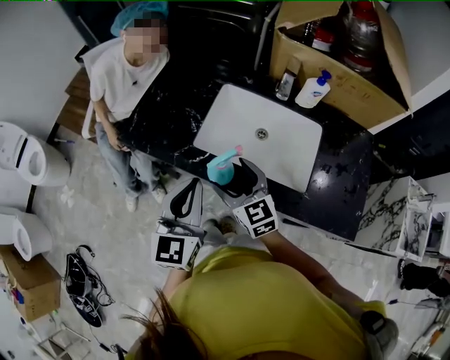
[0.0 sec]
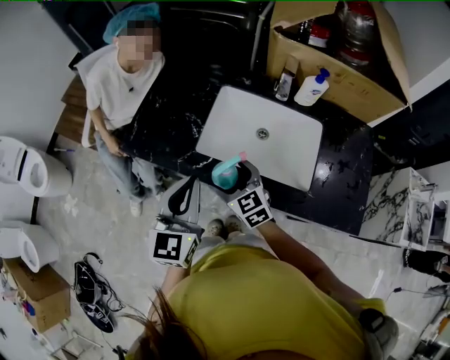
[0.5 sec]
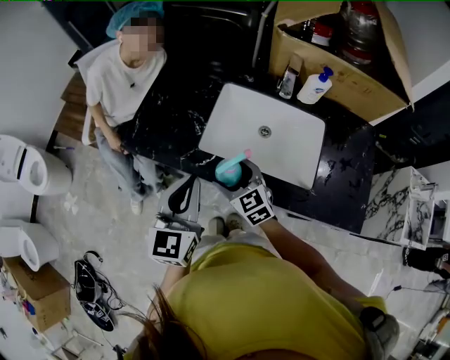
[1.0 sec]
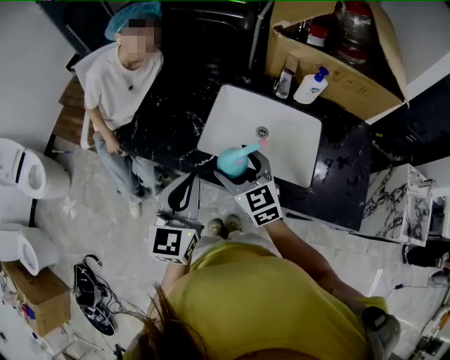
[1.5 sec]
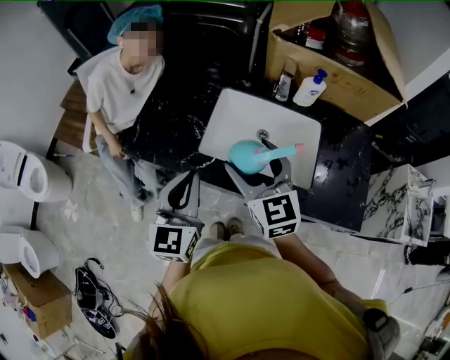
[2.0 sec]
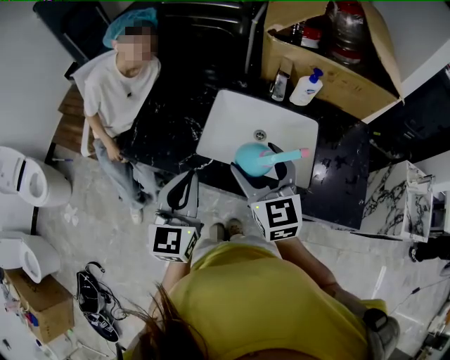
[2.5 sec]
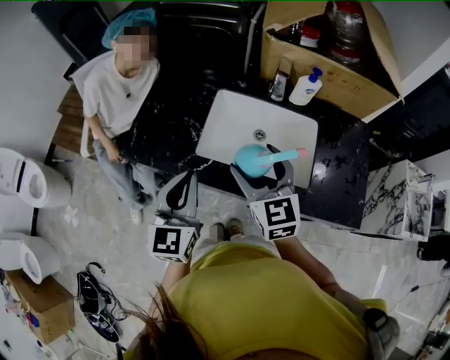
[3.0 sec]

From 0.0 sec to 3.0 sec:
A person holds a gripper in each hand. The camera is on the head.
From 0.0 sec to 1.5 sec: The right gripper goes downward and returns, approximately 5 cm each way.
From 1.5 sec to 3.0 sec: The right gripper shifts approximately 10 cm upward and to the right.

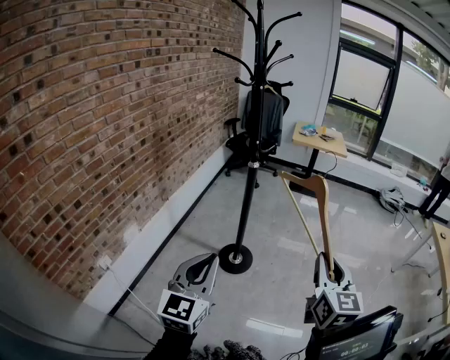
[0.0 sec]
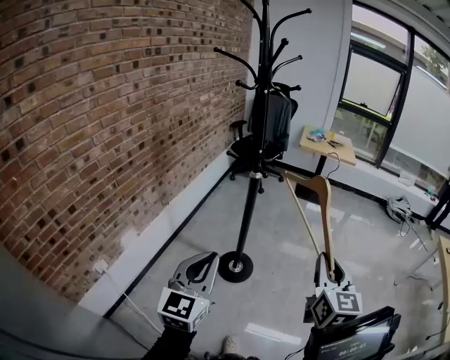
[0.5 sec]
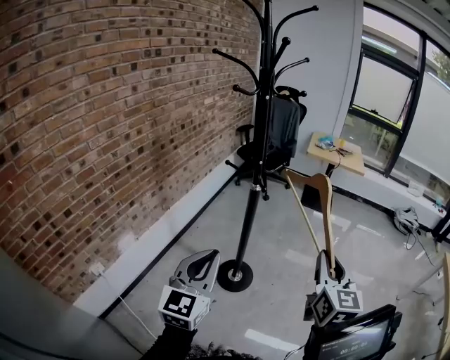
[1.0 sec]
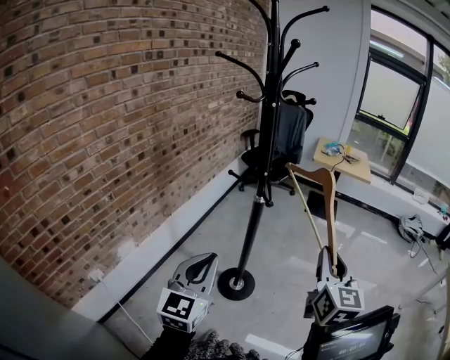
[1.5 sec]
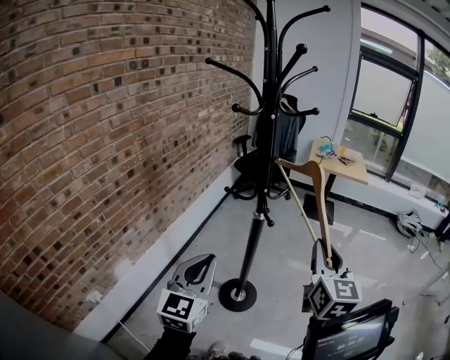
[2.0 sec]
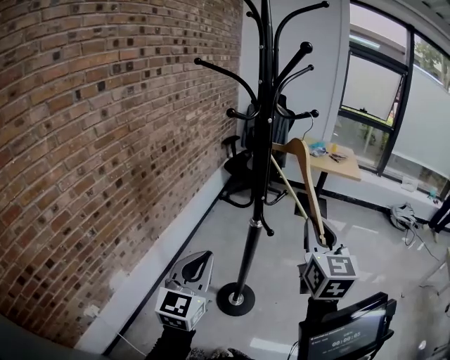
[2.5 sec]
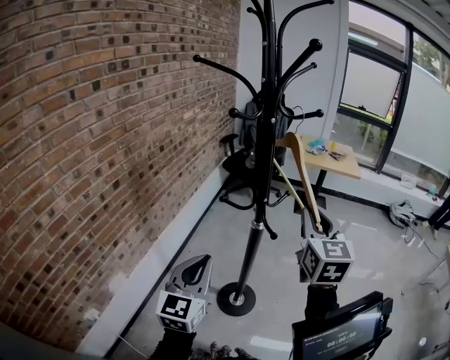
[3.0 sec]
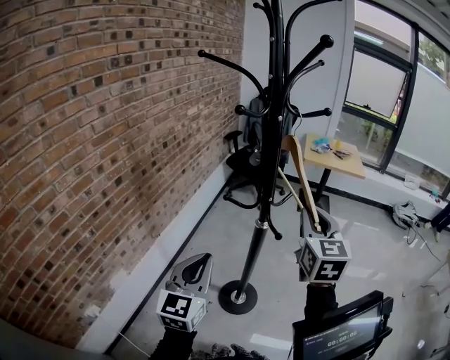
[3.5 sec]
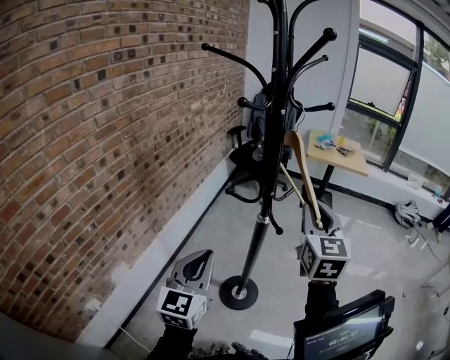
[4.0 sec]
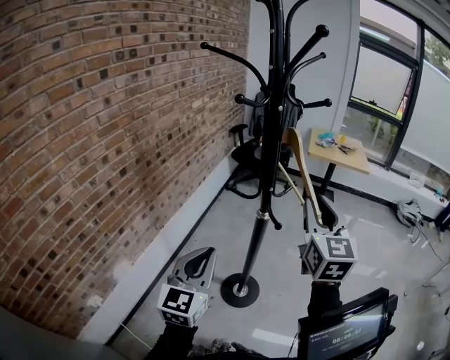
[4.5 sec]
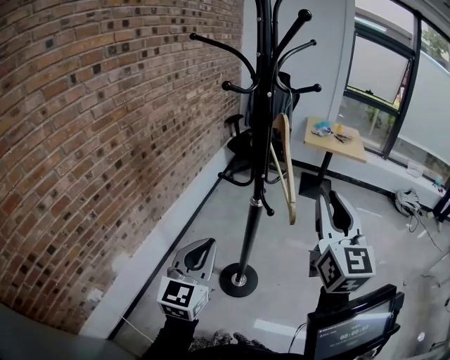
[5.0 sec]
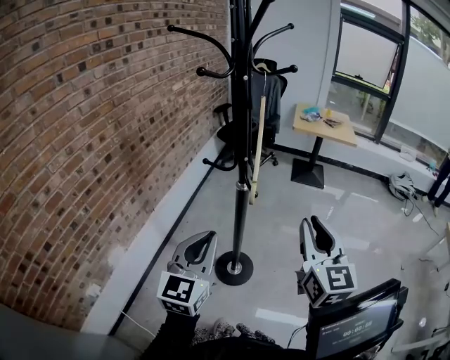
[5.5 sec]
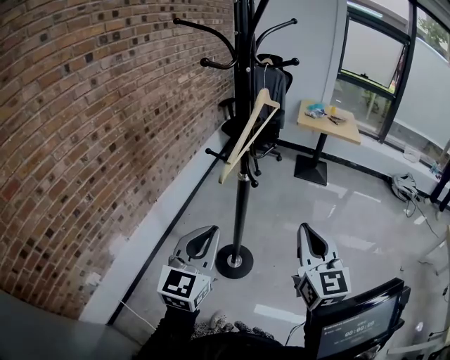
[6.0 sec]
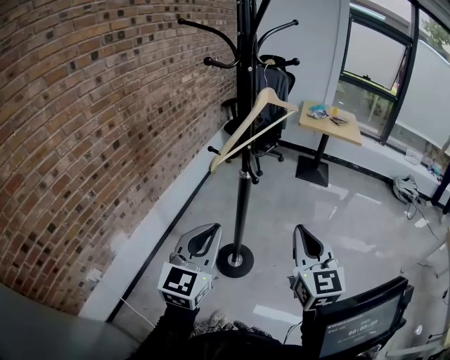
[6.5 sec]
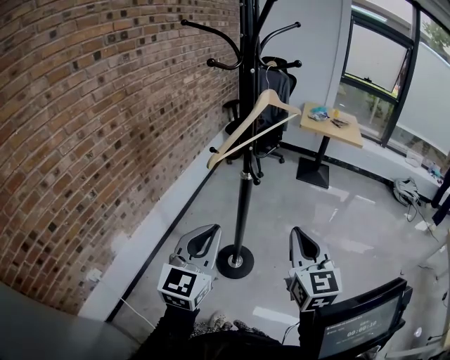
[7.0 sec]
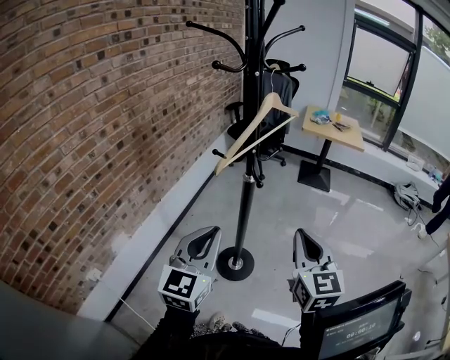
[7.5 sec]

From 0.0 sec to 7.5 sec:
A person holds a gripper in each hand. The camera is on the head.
From 0.0 sec to 2.0 sec: The two grippers go approximately 30 cm forward.
From 2.0 sec to 4.0 sec: The right gripper travels forward and to the left by some 15 cm. Meanwhile the left gripper moves forward, approximately 5 cm.
From 4.0 sec to 5.5 sec: The right gripper goes some 15 cm backward and to the right. The left gripper shifts some 10 cm to the right.
From 5.5 sec to 7.5 sec: The right gripper changes place by about 5 cm.

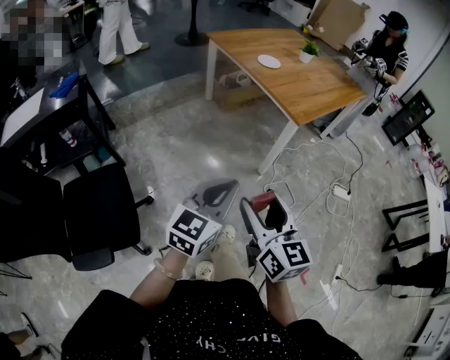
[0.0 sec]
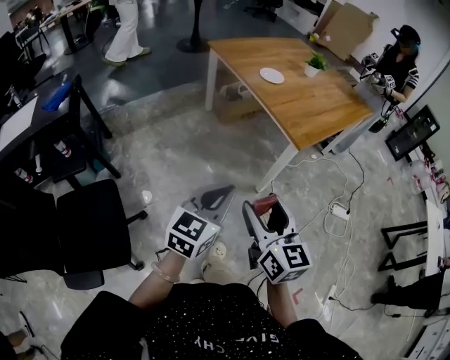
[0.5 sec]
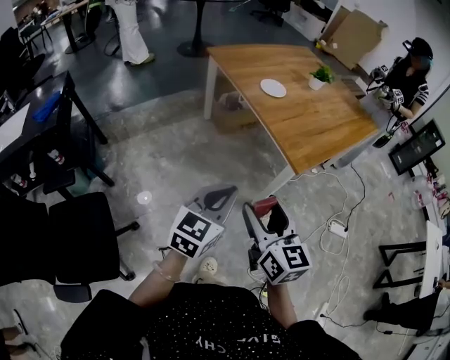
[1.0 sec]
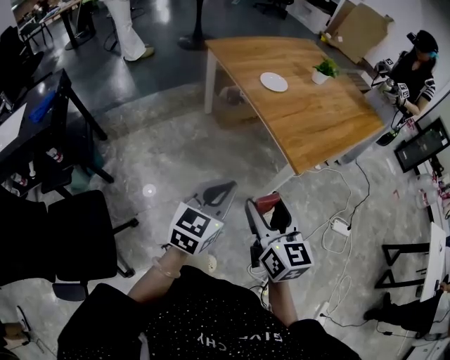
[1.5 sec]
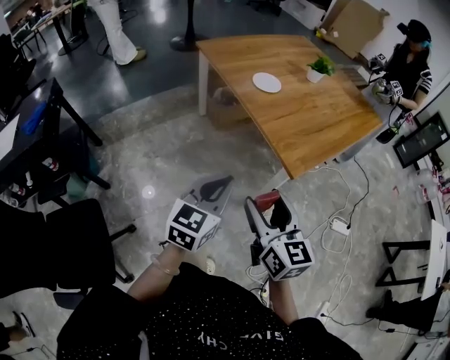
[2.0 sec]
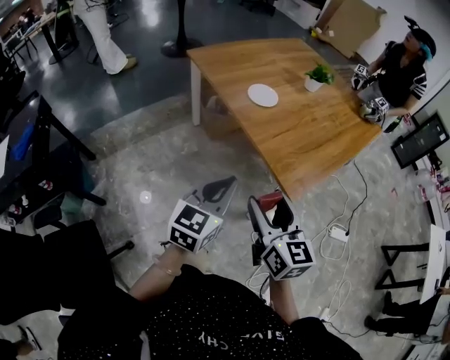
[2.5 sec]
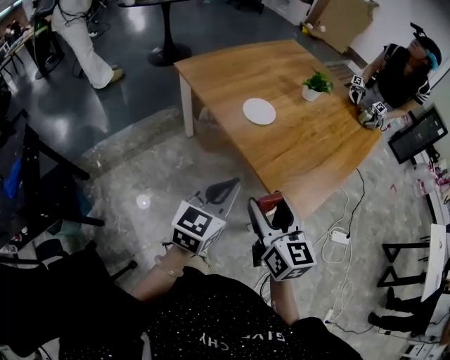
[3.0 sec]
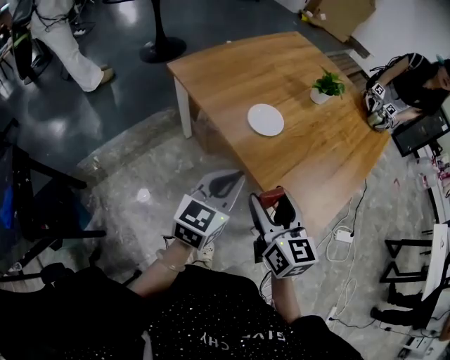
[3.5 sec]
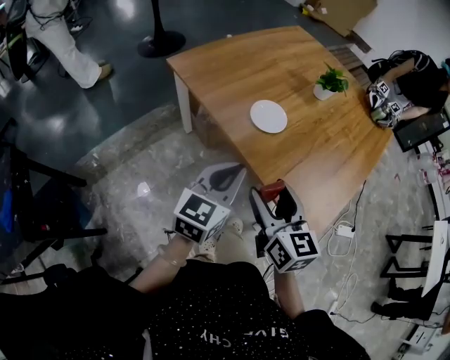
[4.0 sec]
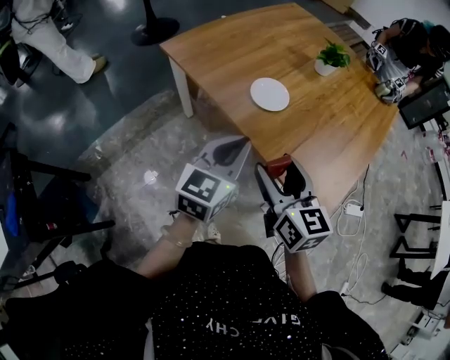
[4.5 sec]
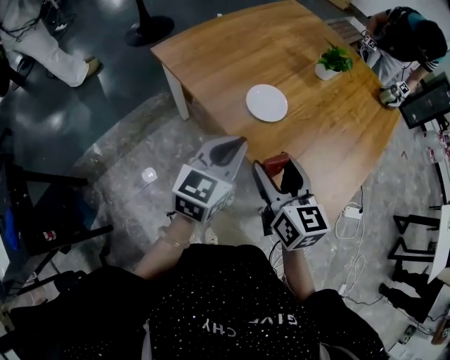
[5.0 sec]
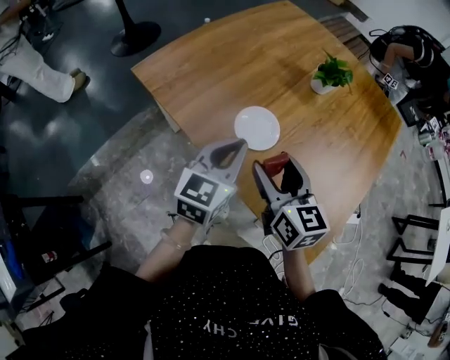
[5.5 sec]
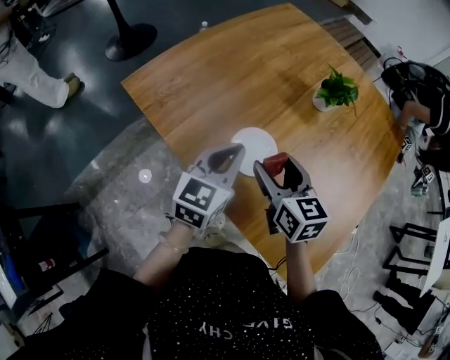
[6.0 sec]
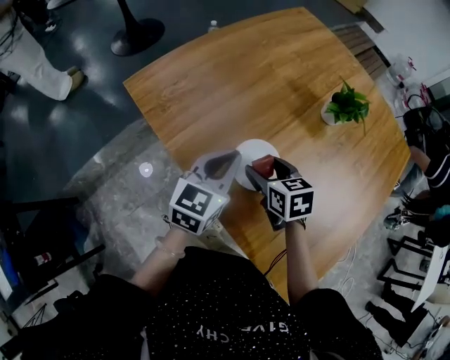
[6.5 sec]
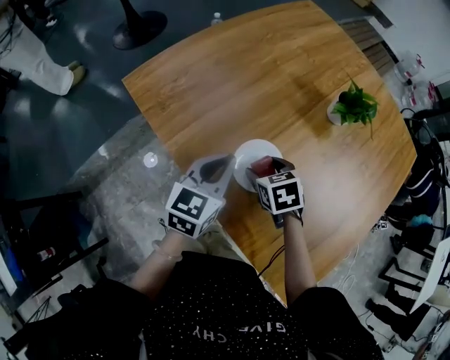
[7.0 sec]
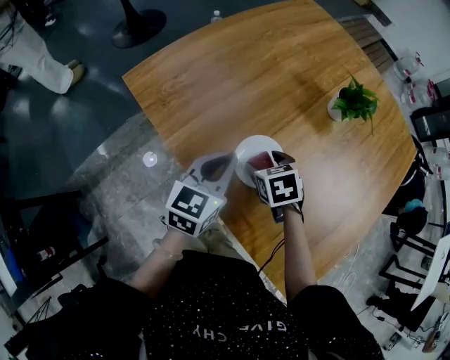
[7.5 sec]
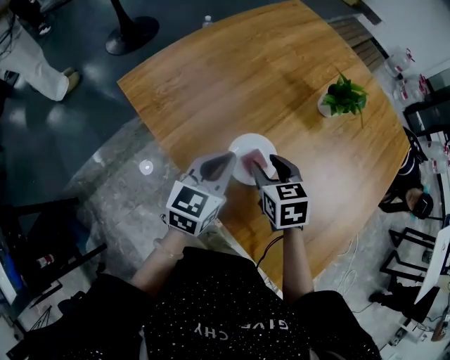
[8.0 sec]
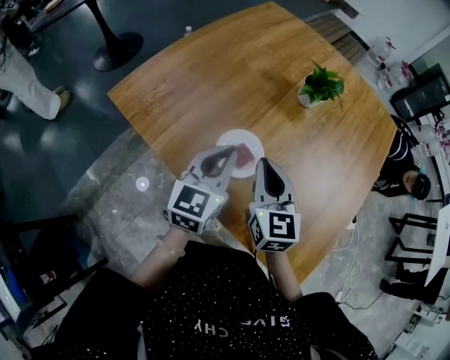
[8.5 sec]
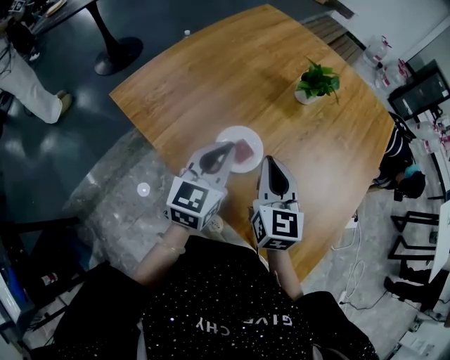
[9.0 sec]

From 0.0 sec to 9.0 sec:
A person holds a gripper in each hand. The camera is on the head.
From 0.0 sec to 2.0 sec: The two grippers go some 35 cm forward.
From 2.0 sec to 4.5 sec: Both grippers move forward, about 35 cm.
From 4.5 sec to 7.0 sec: The right gripper travels forward and downward by about 40 cm, and tilts its fingers approximately 50 degrees downward, while the left gripper travels forward by about 30 cm.
From 7.0 sec to 9.0 sec: The left gripper travels upward by some 5 cm. The right gripper is displaced upward and backward by some 20 cm, points its fingers about 50 degrees further upward, and closes up.

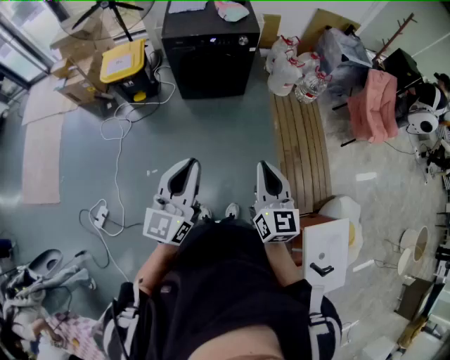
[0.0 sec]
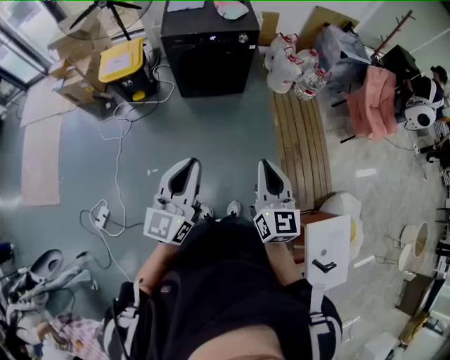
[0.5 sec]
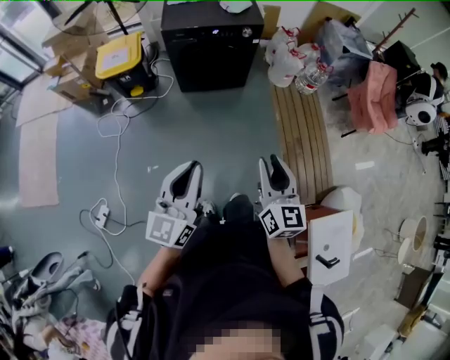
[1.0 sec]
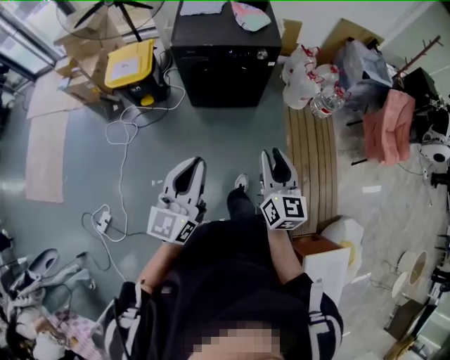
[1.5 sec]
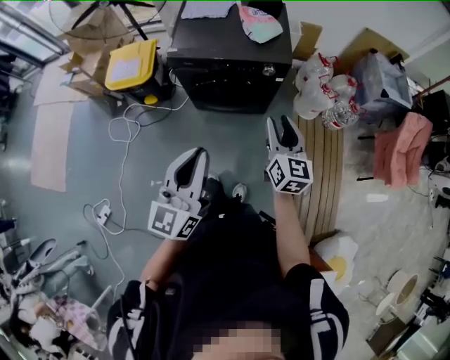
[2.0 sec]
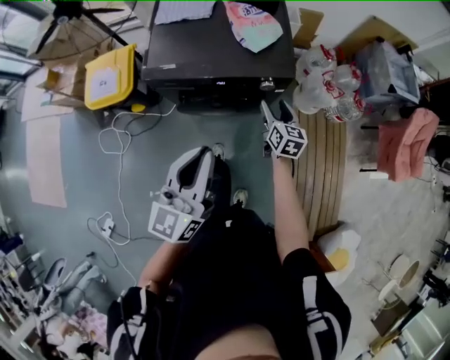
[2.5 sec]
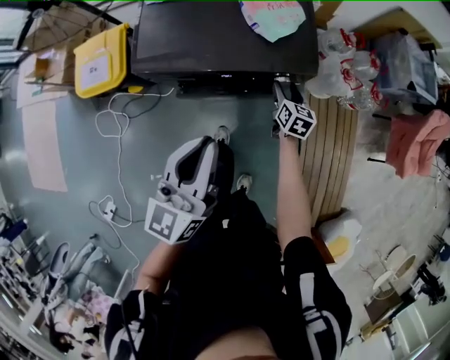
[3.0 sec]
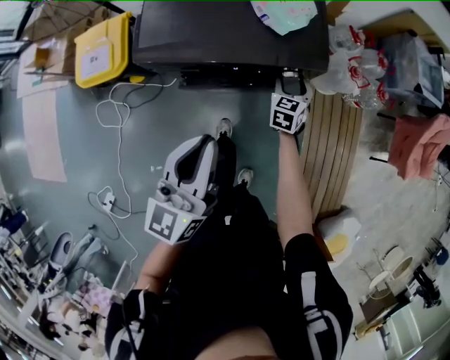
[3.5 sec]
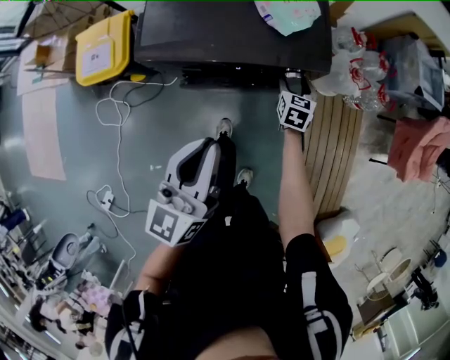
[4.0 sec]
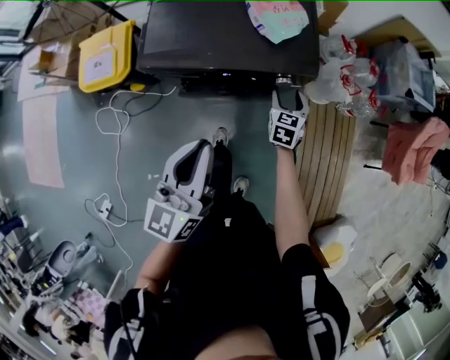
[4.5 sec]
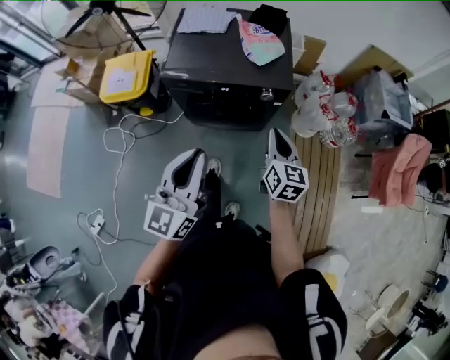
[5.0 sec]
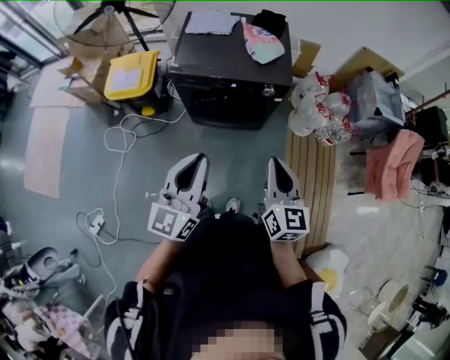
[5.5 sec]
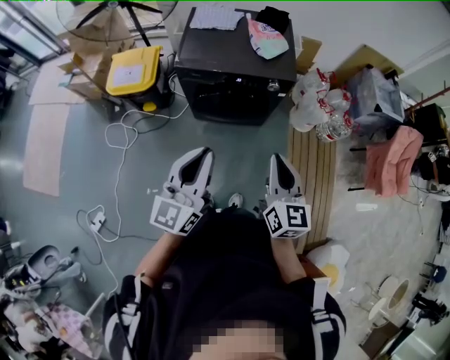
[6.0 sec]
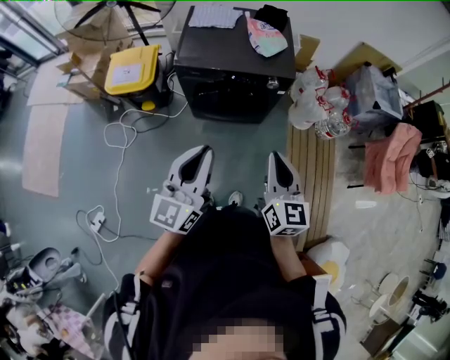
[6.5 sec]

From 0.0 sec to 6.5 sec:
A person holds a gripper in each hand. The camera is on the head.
From 0.0 sec to 2.0 sec: Both grippers move forward, approximately 40 cm. The right gripper opens.
From 2.0 sec to 4.5 sec: The two grippers go about 35 cm forward and downward. The right gripper changes its angle by roughly 30 degrees, and opens its fingers.
From 4.5 sec to 6.5 sec: The right gripper moves backward and upward, about 50 cm, turns by about 30 degrees, and closes up. Meanwhile the left gripper goes roughly 30 cm backward and upward.
